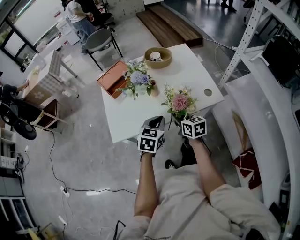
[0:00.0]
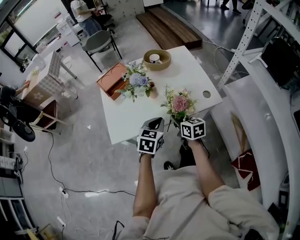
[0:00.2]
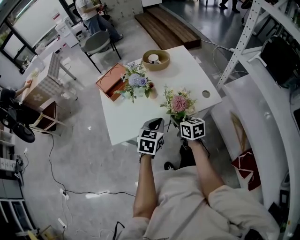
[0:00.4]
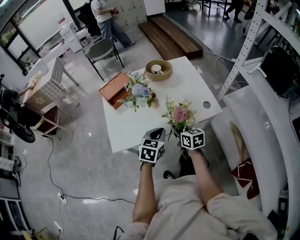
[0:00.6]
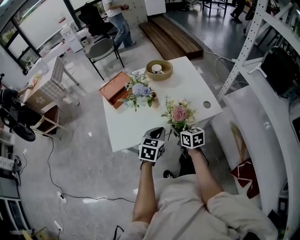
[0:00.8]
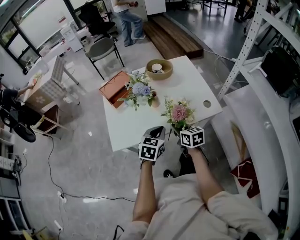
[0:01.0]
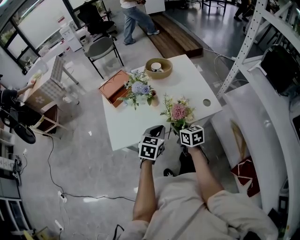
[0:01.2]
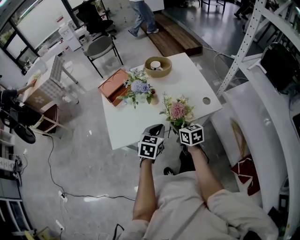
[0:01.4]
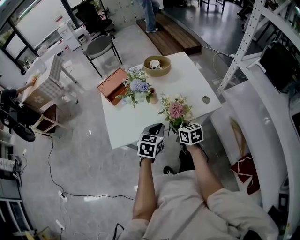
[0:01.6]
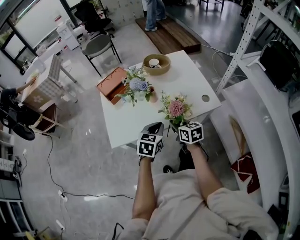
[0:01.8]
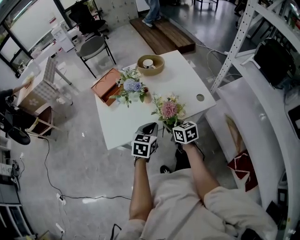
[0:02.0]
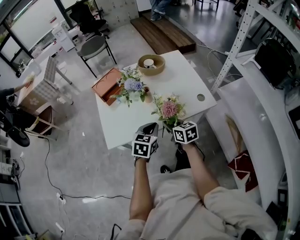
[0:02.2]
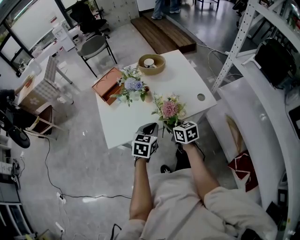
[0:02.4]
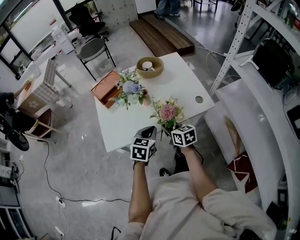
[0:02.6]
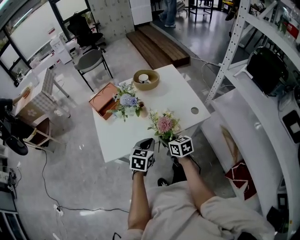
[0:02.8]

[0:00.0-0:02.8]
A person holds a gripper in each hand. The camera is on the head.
0:00.0 to 0:01.4: Both grippers stay about where they are.
0:01.4 to 0:02.8: The grippers make only small movements.

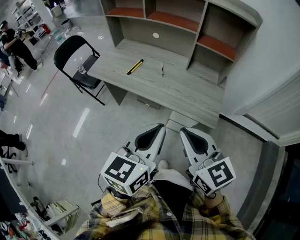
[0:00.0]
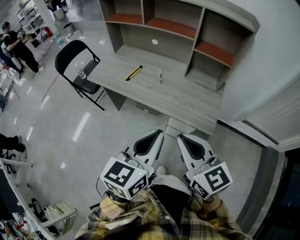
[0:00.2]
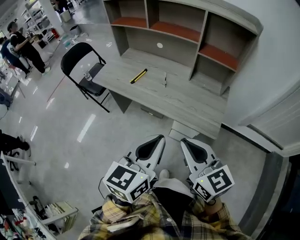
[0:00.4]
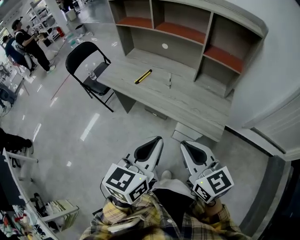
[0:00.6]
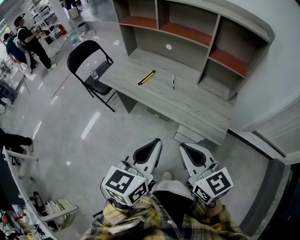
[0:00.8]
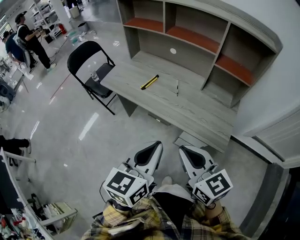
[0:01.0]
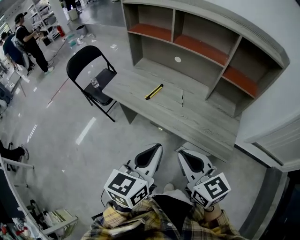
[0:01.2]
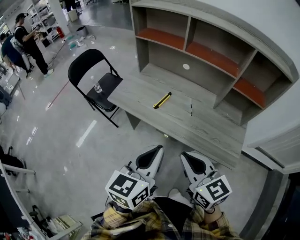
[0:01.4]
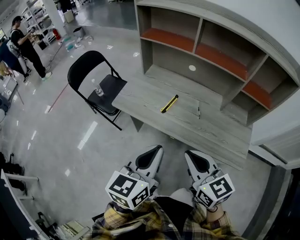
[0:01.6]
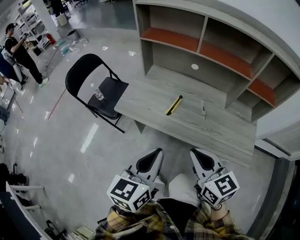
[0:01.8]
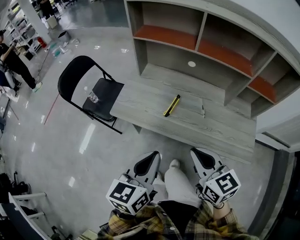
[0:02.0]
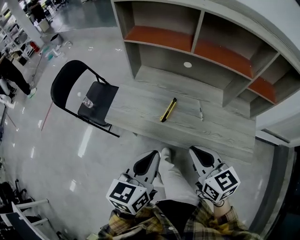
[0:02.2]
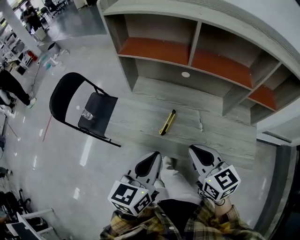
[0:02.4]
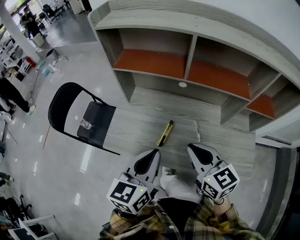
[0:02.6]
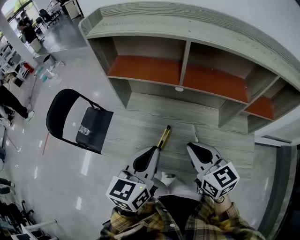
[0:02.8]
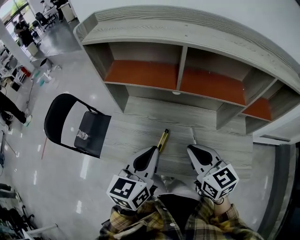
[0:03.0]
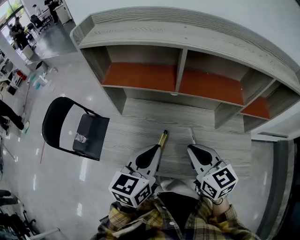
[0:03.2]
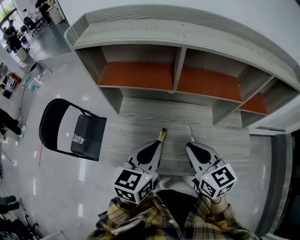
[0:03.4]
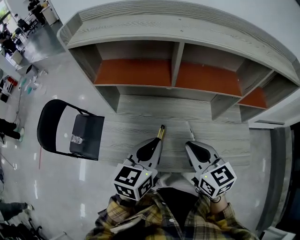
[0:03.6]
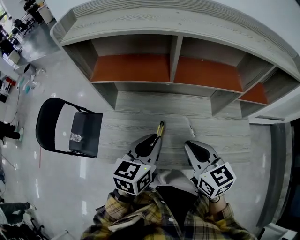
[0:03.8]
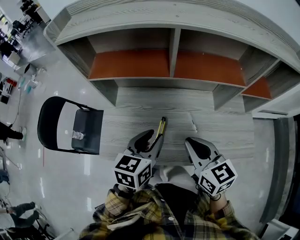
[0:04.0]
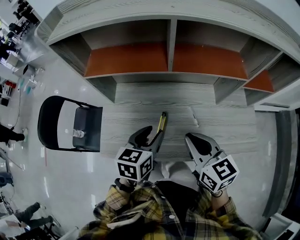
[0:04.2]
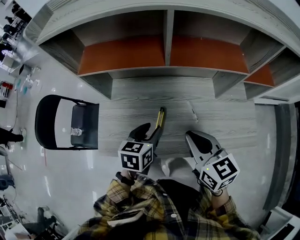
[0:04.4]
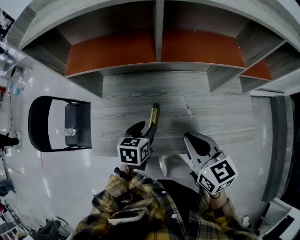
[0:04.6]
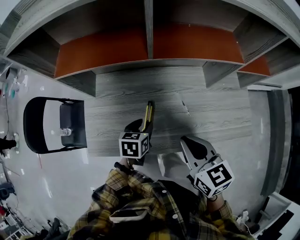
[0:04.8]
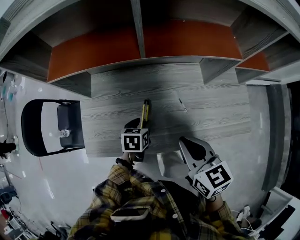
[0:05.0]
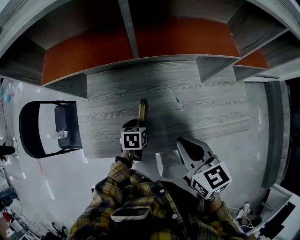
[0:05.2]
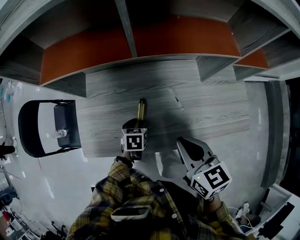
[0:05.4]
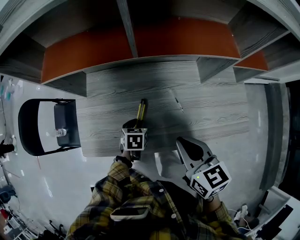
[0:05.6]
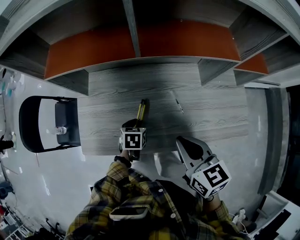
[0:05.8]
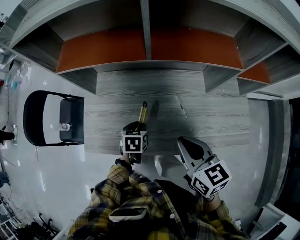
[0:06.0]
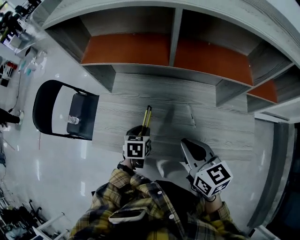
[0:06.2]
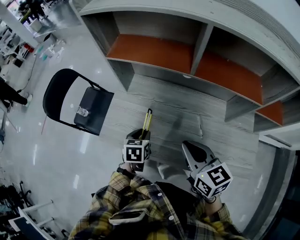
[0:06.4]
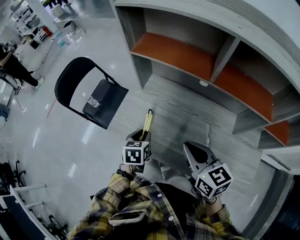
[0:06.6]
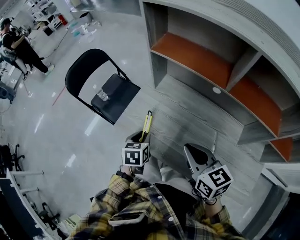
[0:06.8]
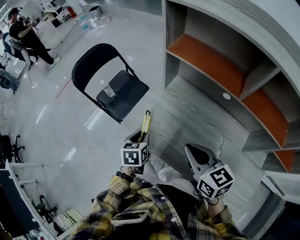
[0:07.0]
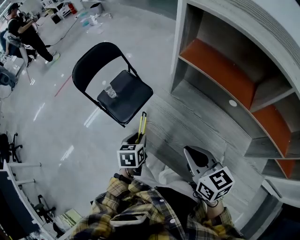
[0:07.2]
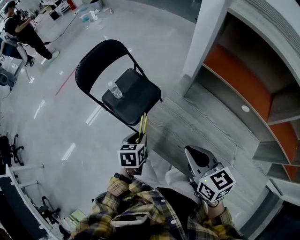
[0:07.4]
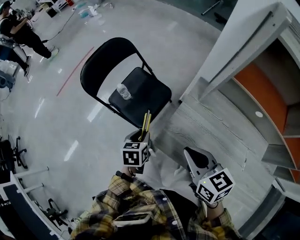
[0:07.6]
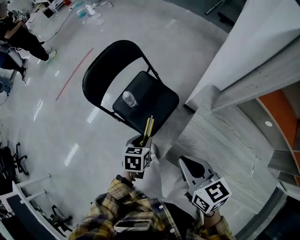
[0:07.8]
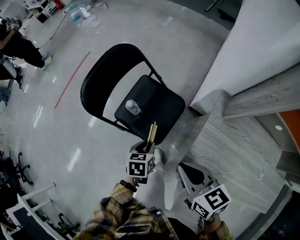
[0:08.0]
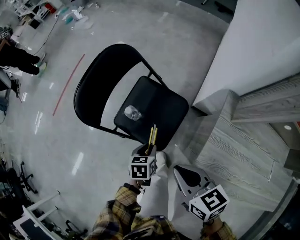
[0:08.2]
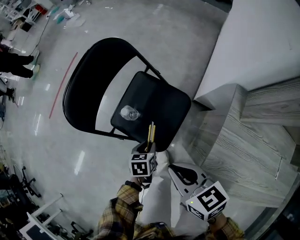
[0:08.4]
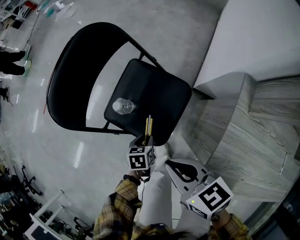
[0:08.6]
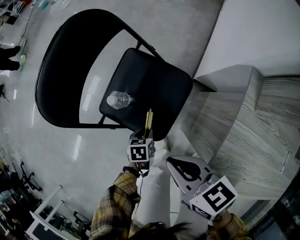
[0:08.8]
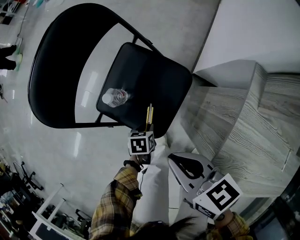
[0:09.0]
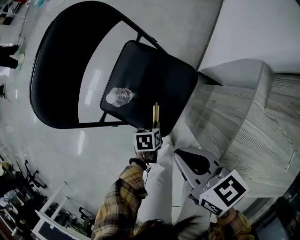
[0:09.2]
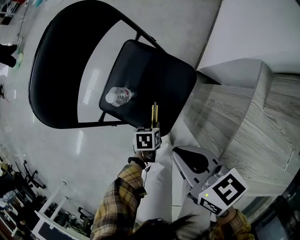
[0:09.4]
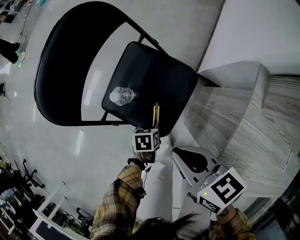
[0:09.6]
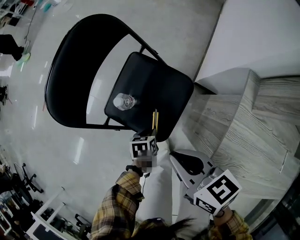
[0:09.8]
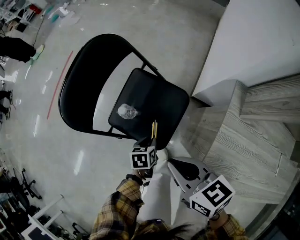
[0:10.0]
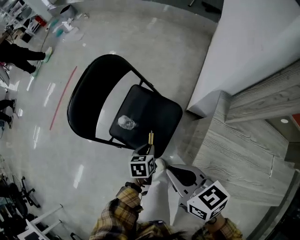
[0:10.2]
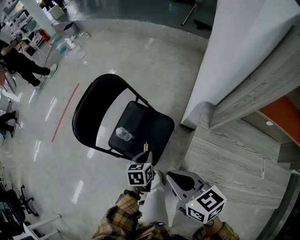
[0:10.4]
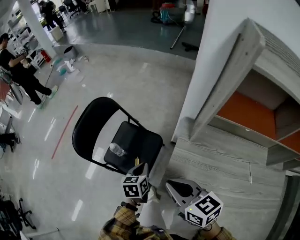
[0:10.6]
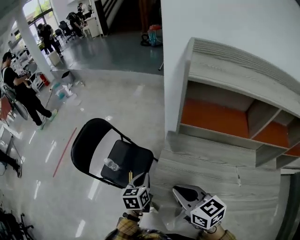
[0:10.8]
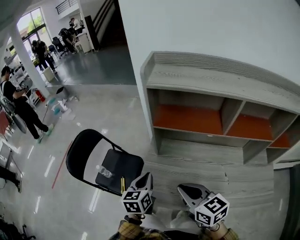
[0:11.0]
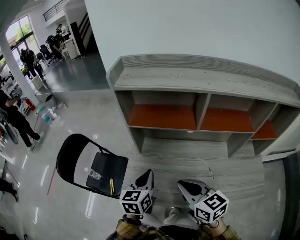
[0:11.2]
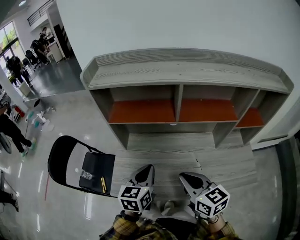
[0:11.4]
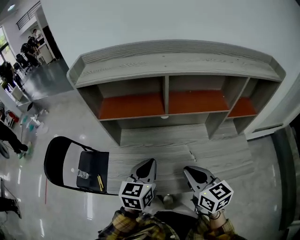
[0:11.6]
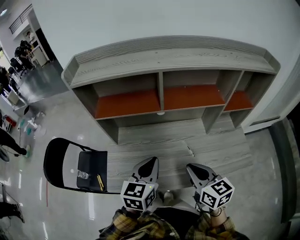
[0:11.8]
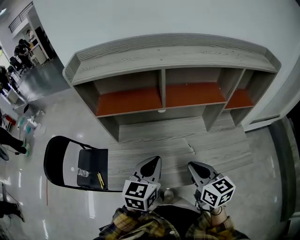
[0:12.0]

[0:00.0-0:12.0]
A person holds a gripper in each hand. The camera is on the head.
0:00.0 to 0:01.6: The right gripper goes roughly 25 cm forward and to the left; the left gripper shifts approximately 30 cm to the left and forward.
0:01.6 to 0:03.0: Both grippers move forward, roughly 25 cm.
0:03.0 to 0:04.4: The left gripper moves downward, about 15 cm, swivels some 30 degrees, and opens up.
0:04.4 to 0:06.0: The left gripper moves downward, some 15 cm, and rotates some 20 degrees.
0:06.0 to 0:07.6: The right gripper ends up roughly 35 cm from where it was, and rotates approximately 40 degrees, while the left gripper shifts by roughly 40 cm, and swivels about 40 degrees.
0:07.6 to 0:09.0: The left gripper moves downward, about 35 cm, and rotates some 20 degrees, while the right gripper is displaced downward, to the left and forward by roughly 35 cm.
0:09.0 to 0:10.4: The left gripper travels upward by some 25 cm, rotates approximately 20 degrees, and closes up, while the right gripper goes about 15 cm upward.
0:10.4 to 0:12.0: The two grippers travel together, roughly 50 cm. The right gripper swivels approximately 40 degrees. Meanwhile the left gripper changes its angle by some 50 degrees.

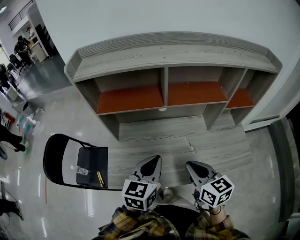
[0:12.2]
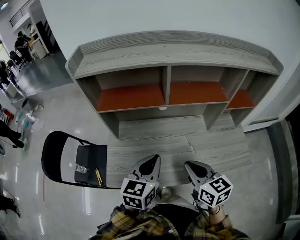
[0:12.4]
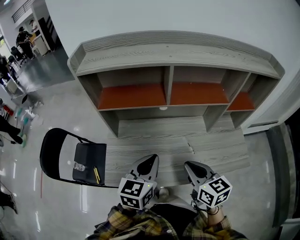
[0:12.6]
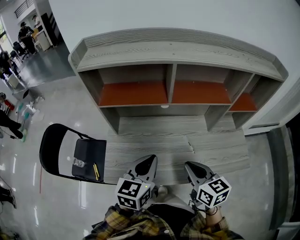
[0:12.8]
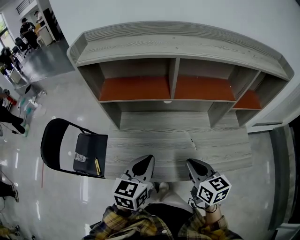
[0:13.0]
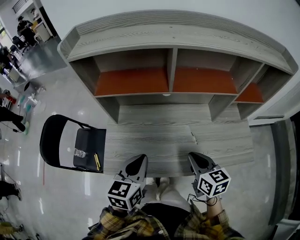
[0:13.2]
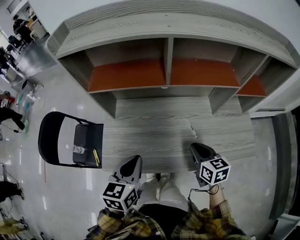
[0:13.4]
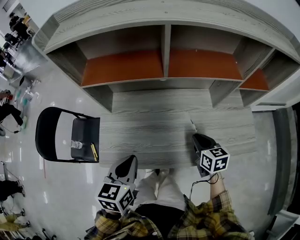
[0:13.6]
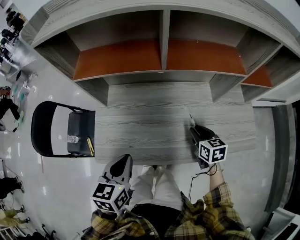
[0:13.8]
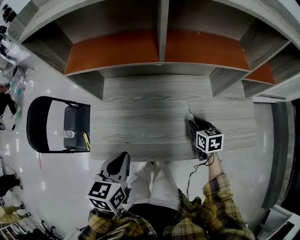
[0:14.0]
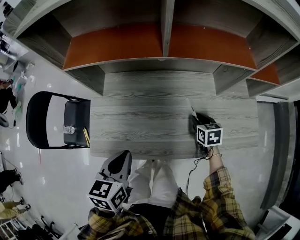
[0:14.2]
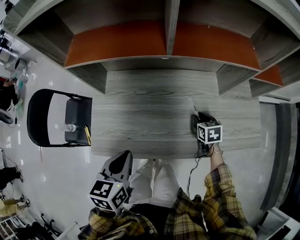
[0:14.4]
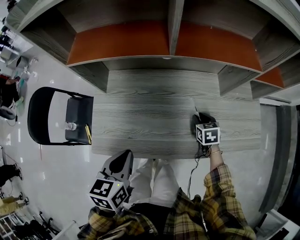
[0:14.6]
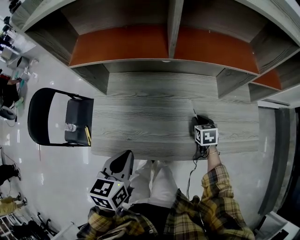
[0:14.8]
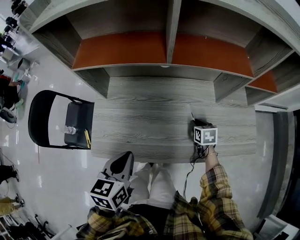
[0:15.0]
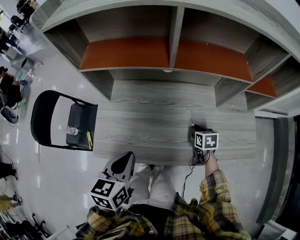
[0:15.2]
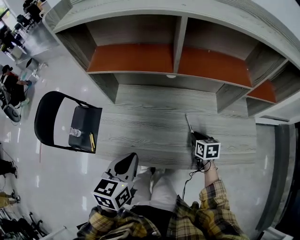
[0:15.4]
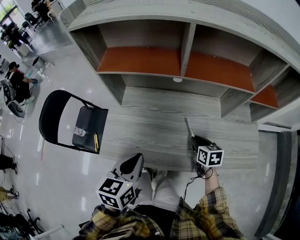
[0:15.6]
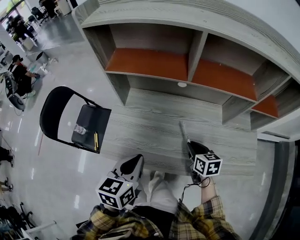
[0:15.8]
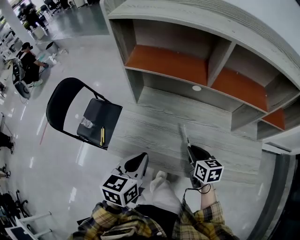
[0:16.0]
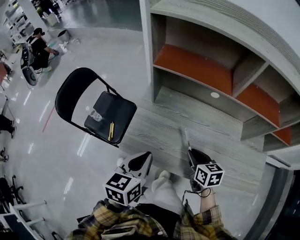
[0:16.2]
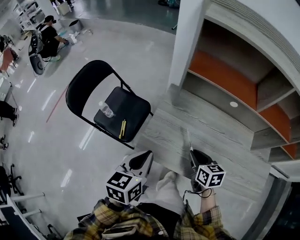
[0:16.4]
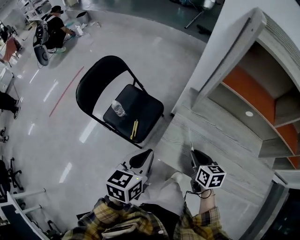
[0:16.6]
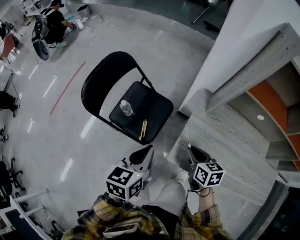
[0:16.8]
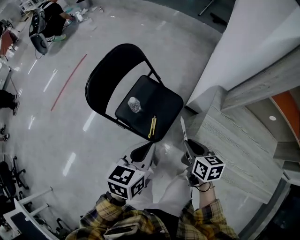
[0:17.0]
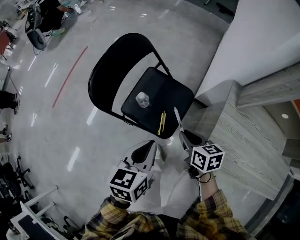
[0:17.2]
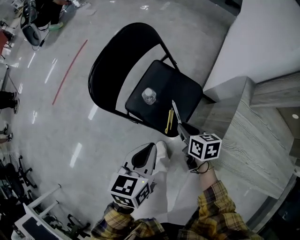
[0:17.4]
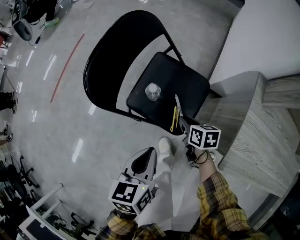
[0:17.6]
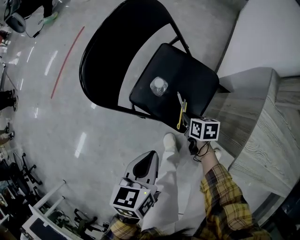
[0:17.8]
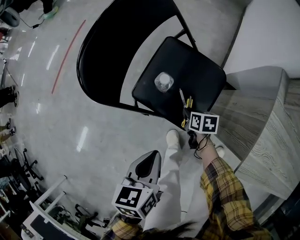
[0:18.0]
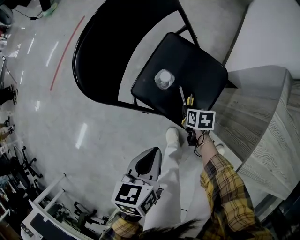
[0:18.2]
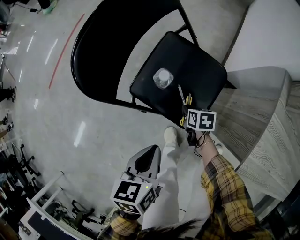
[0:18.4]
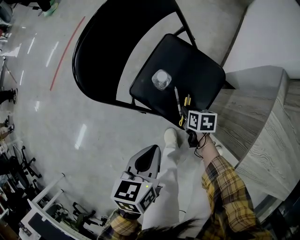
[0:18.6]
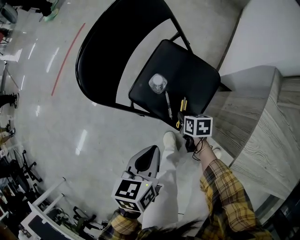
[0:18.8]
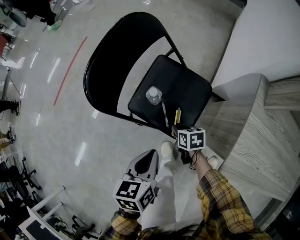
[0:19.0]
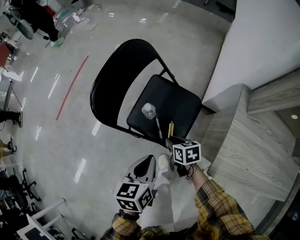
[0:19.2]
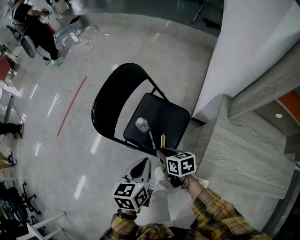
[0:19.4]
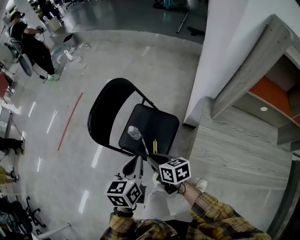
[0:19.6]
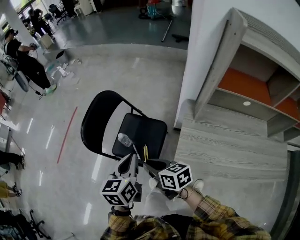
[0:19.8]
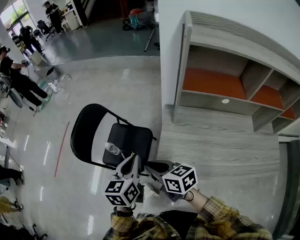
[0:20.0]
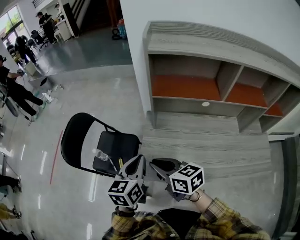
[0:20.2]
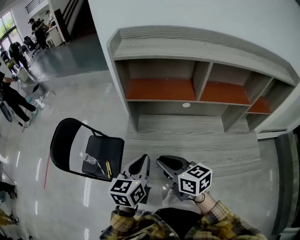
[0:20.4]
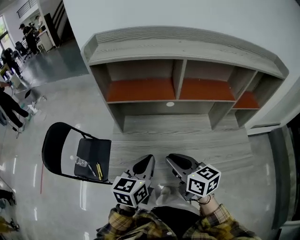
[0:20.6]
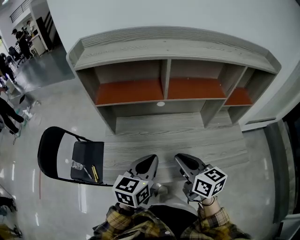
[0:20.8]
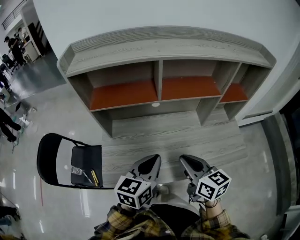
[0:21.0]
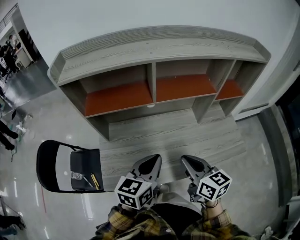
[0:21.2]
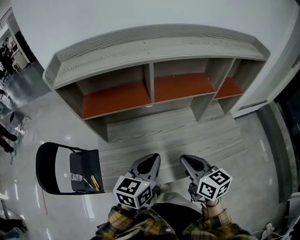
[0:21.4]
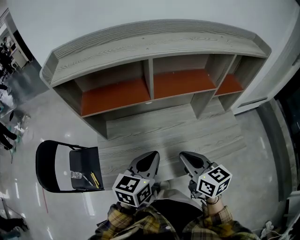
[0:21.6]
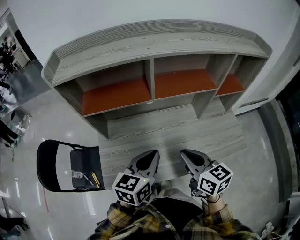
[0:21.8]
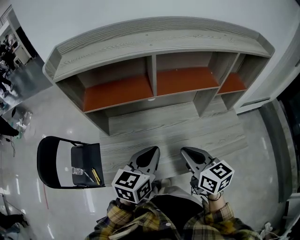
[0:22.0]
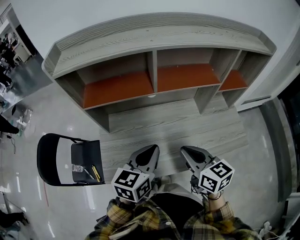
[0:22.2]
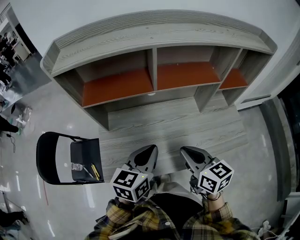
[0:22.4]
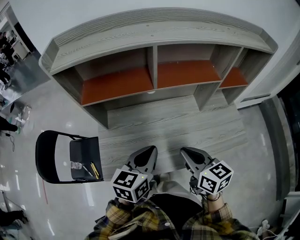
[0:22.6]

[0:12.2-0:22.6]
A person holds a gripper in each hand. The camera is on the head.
0:12.2 to 0:13.6: The right gripper goes about 20 cm downward, forward and to the right; the left gripper shifts roughly 10 cm downward and to the left.
0:13.6 to 0:15.2: The right gripper is displaced downward by approximately 15 cm.
0:15.2 to 0:16.6: The two grippers go approximately 35 cm to the left. The right gripper swivels about 30 degrees.
0:16.6 to 0:18.2: The right gripper moves downward, to the left and forward, some 60 cm, and rotates approximately 30 degrees, while the left gripper shifts about 40 cm to the left and downward, and rotates approximately 20 degrees.
0:18.2 to 0:19.6: The left gripper shifts approximately 25 cm upward and to the right, and rotates approximately 20 degrees. The right gripper travels upward by some 35 cm, and swivels approximately 30 degrees.
0:19.6 to 0:21.2: Both grippers are carried roughly 60 cm. The right gripper swivels approximately 50 degrees. The left gripper turns by approximately 50 degrees.
0:21.2 to 0:22.6: The grippers stay close to where they were, moving slightly.
